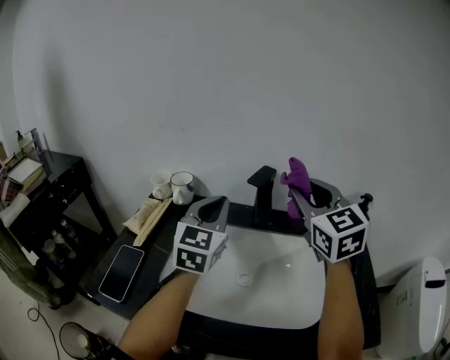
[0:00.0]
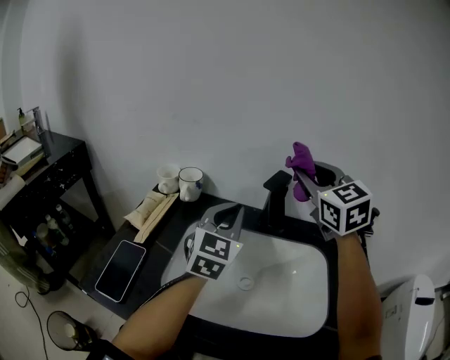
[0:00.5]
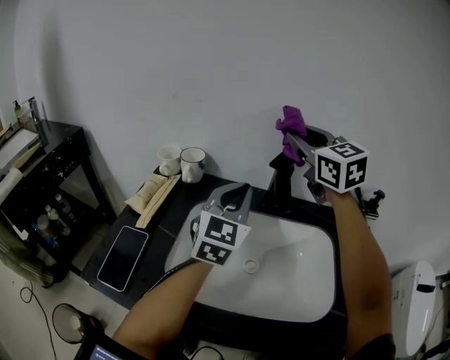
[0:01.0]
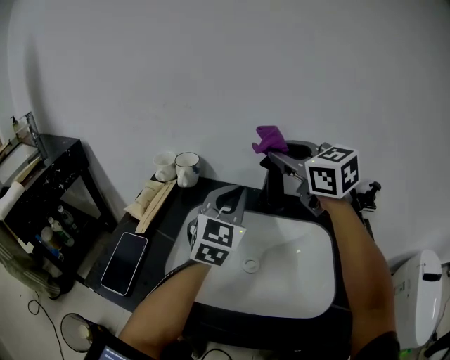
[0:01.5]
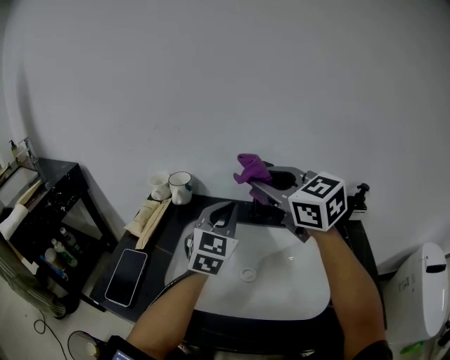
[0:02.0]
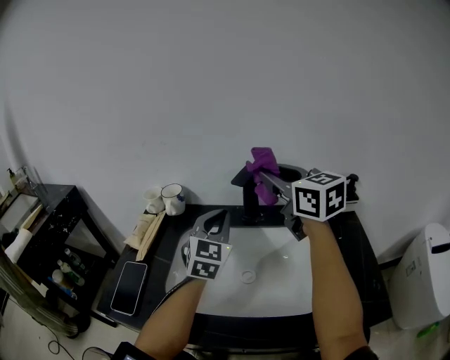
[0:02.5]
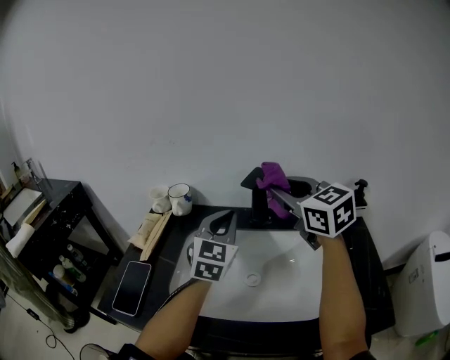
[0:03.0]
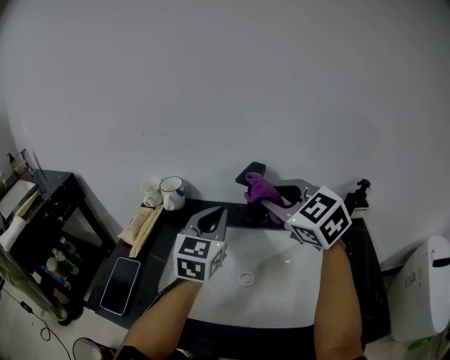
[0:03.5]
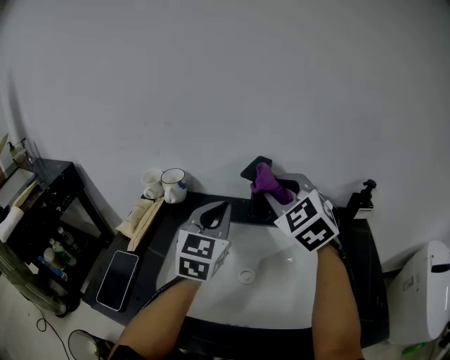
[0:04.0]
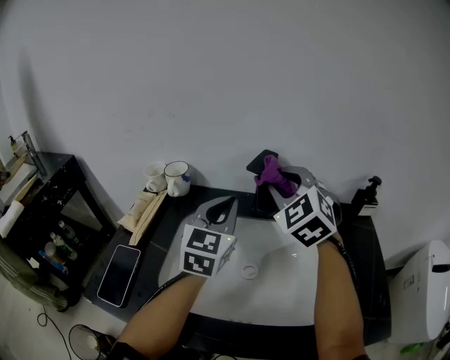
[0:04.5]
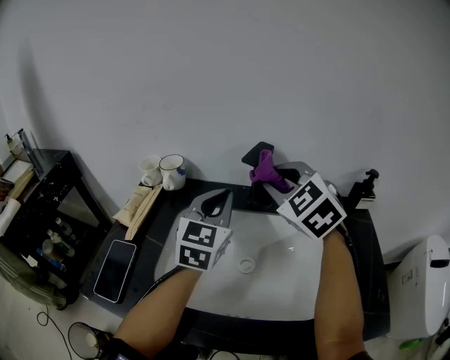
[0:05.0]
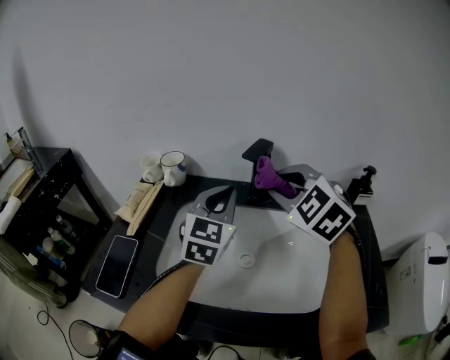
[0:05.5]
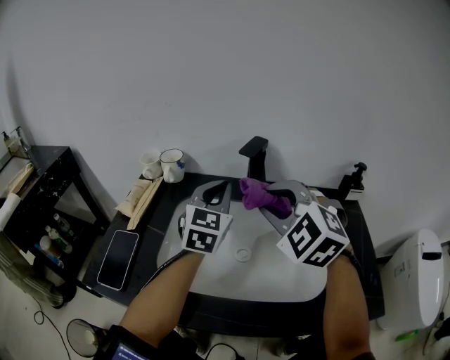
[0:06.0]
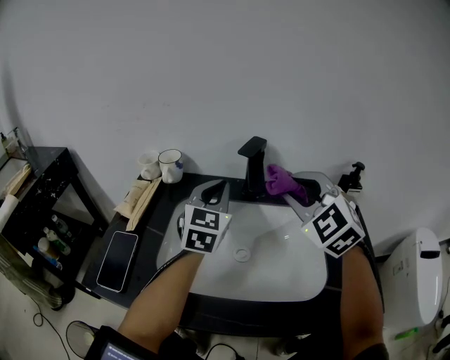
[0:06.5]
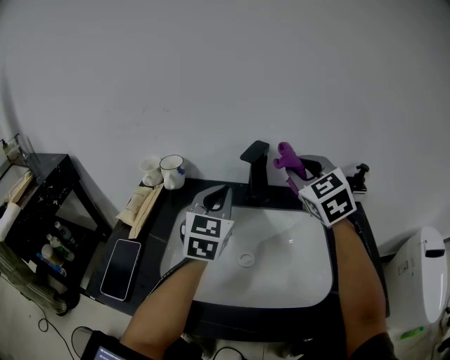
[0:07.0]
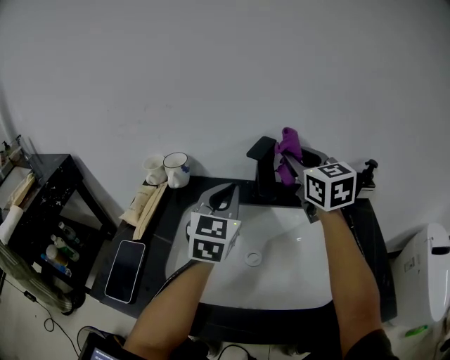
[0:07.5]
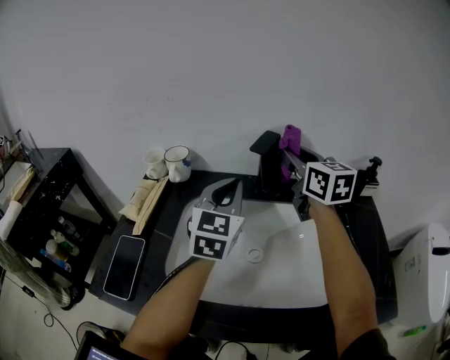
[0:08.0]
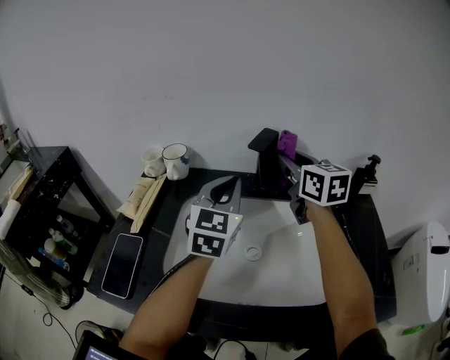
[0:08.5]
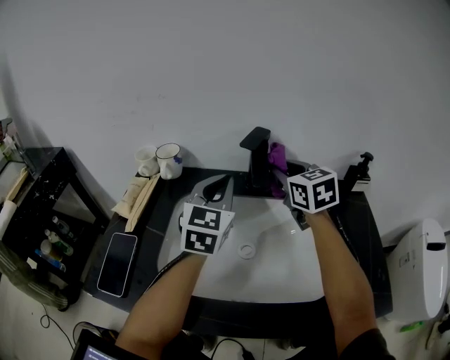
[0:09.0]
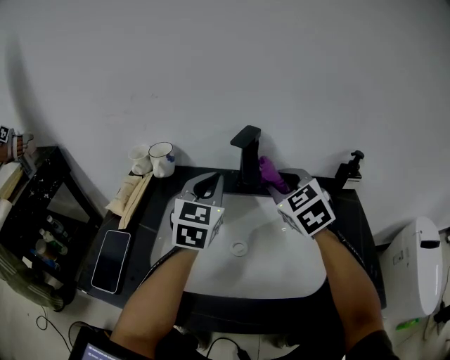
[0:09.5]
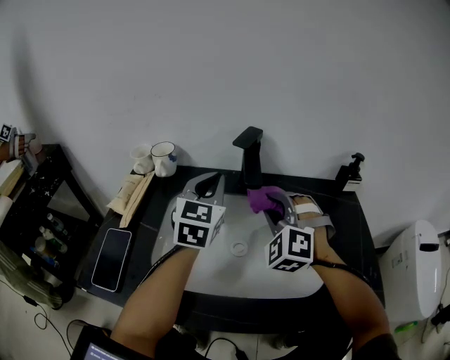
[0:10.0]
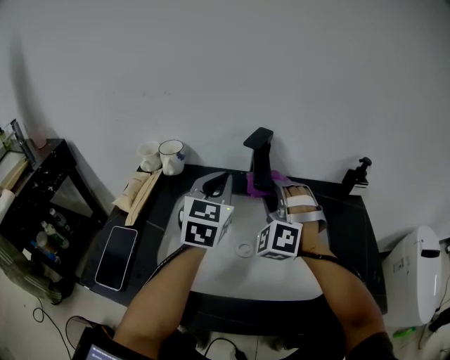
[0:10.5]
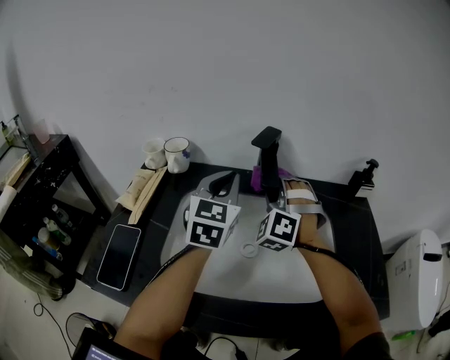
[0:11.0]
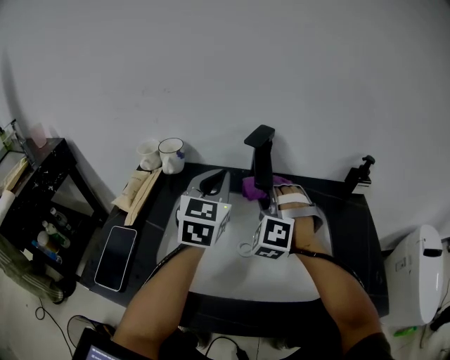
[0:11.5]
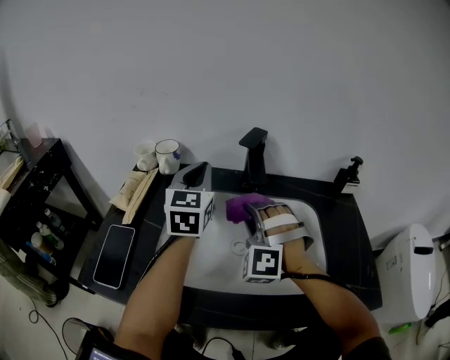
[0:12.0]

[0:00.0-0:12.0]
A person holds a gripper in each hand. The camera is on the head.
0:00.0 to 0:02.0: The right gripper goes some 10 cm to the left, moves about 10 cm forward and comes back, and changes its angle by some 20 degrees.
0:02.0 to 0:04.0: The right gripper is displaced downward by about 5 cm, and rotates about 30 degrees.
0:04.0 to 0:06.0: The right gripper travels backward by some 10 cm.
0:06.0 to 0:08.0: The right gripper is displaced forward and to the right by approximately 15 cm, and rotates around the line of its fingers by roughly 60 degrees, clockwise from behind.
0:08.0 to 0:10.0: The right gripper moves downward and backward, roughly 15 cm, and rotates around the line of its fingers by some 80 degrees, counterclockwise from behind.
0:10.0 to 0:12.0: Both grippers travel together to the left, approximately 5 cm. The right gripper reaches approximately 5 cm forward, then returns.

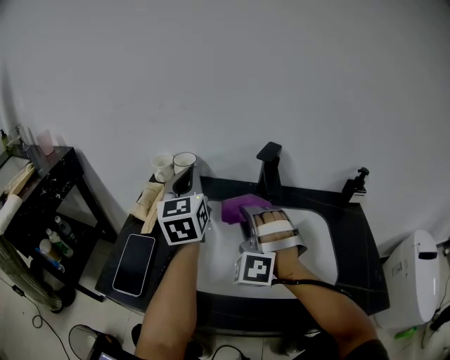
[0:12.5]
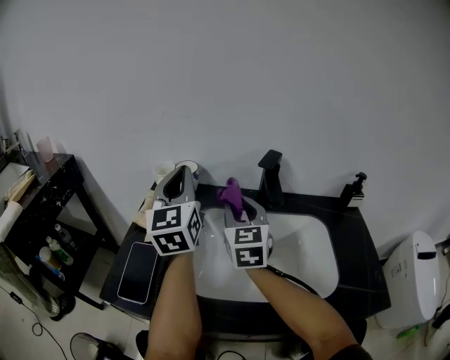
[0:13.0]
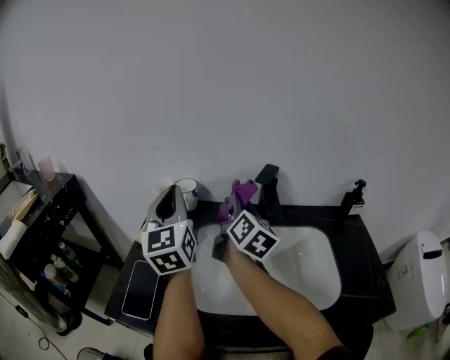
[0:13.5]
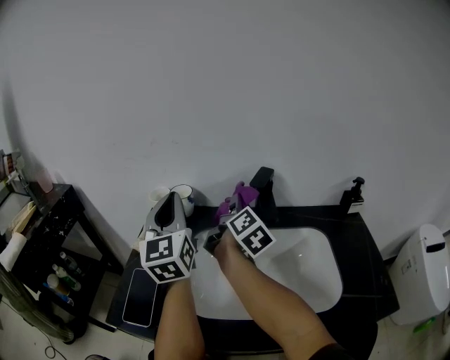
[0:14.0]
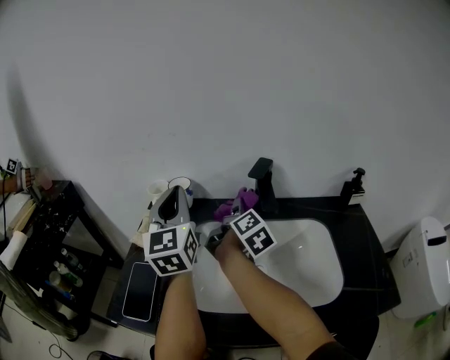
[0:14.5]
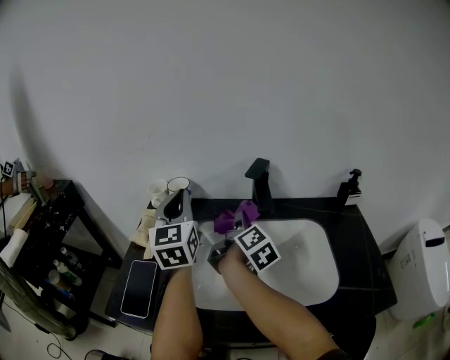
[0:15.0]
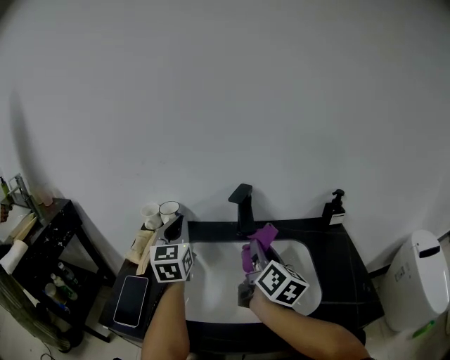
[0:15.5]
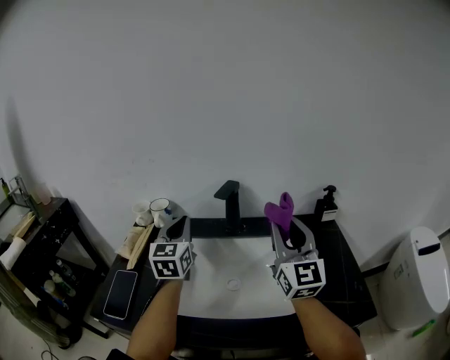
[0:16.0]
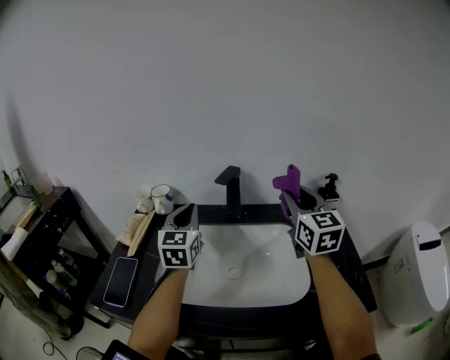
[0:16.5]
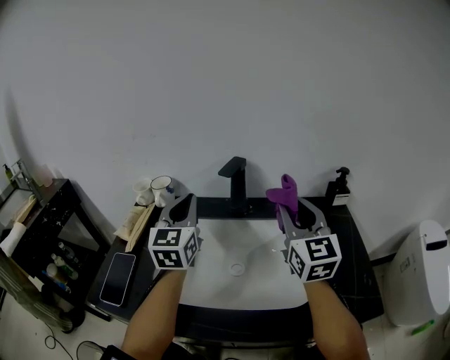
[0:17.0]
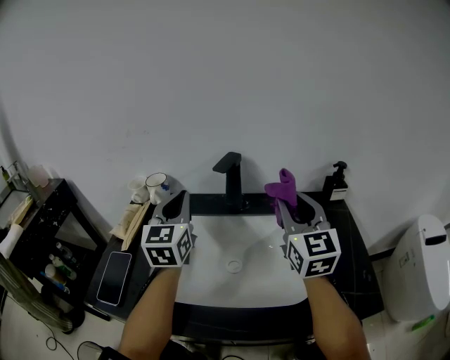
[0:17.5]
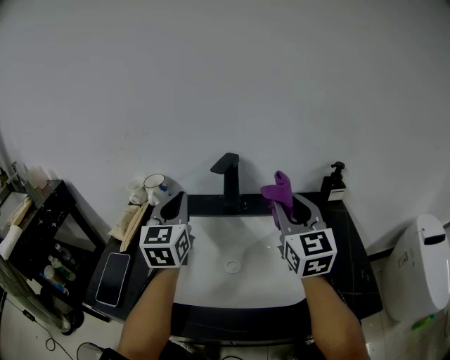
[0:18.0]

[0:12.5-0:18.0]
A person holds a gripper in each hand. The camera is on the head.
0:12.5 to 0:14.5: The right gripper goes roughly 10 cm forward, and twists approximately 150 degrees clockwise, seen from behind.
0:14.5 to 0:16.0: The left gripper shifts some 10 cm to the right and downward. Meanwhile the right gripper heads to the right, backward and upward, covering approximately 25 cm, and twists some 70 degrees counterclockwise, seen from behind.

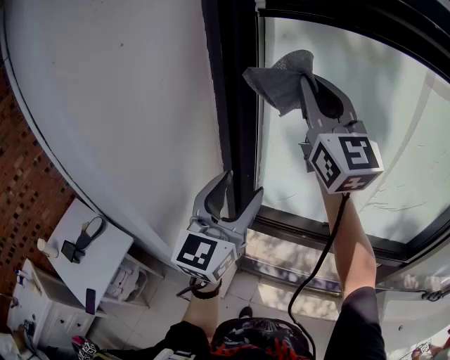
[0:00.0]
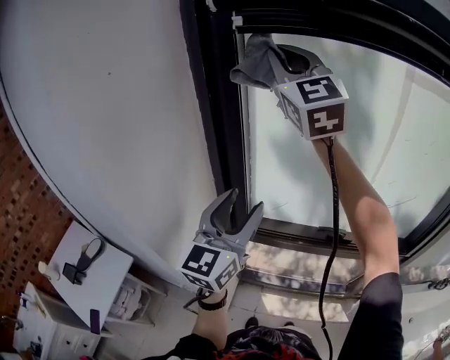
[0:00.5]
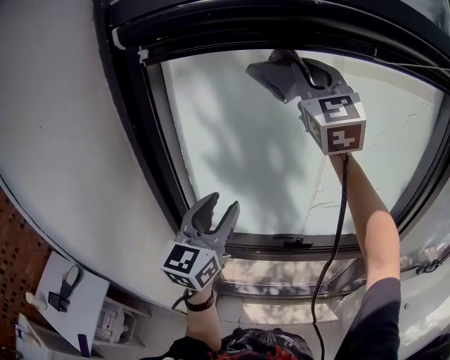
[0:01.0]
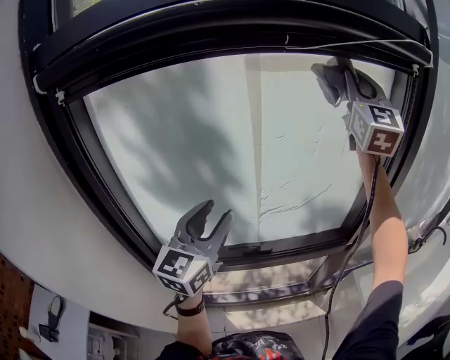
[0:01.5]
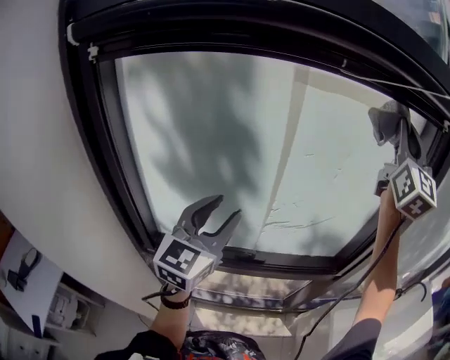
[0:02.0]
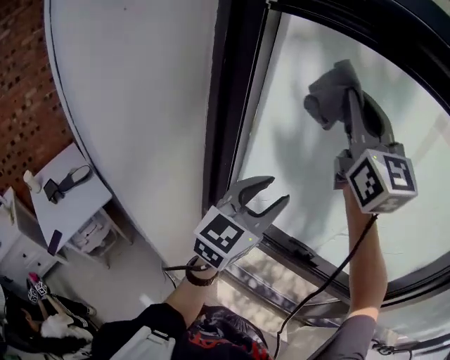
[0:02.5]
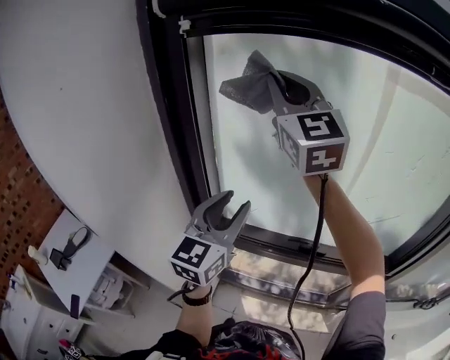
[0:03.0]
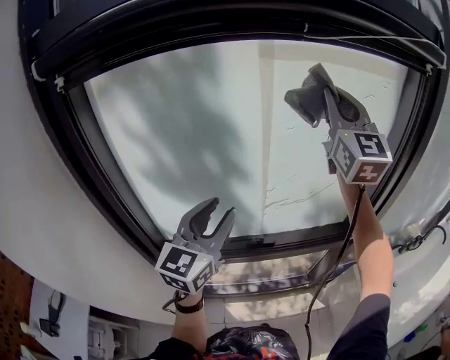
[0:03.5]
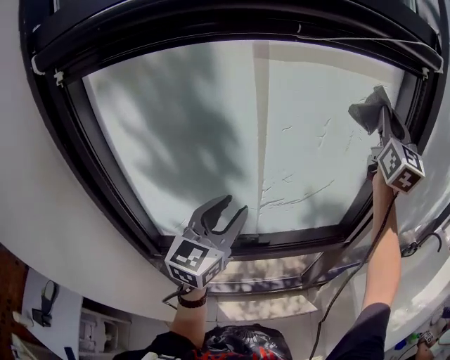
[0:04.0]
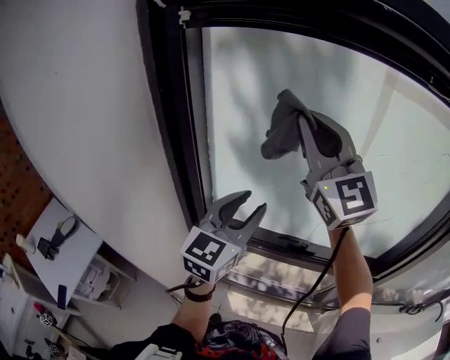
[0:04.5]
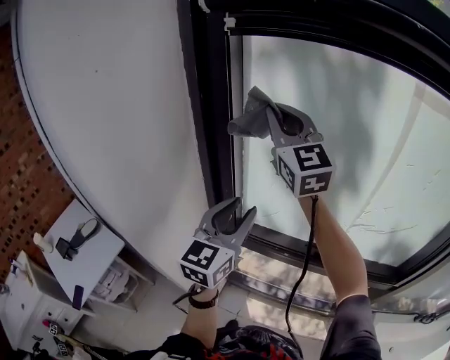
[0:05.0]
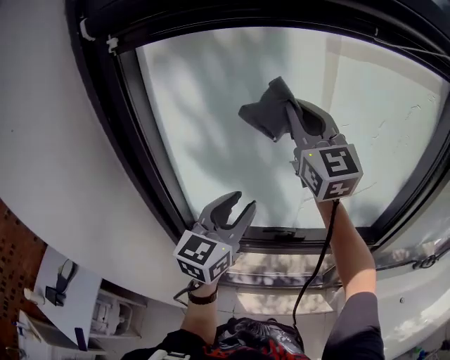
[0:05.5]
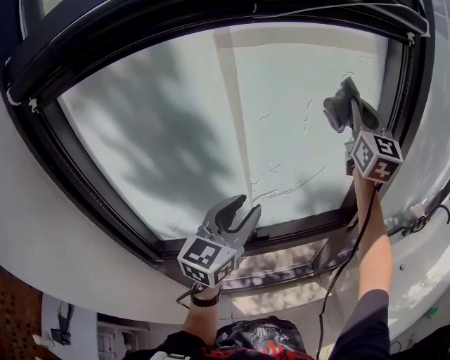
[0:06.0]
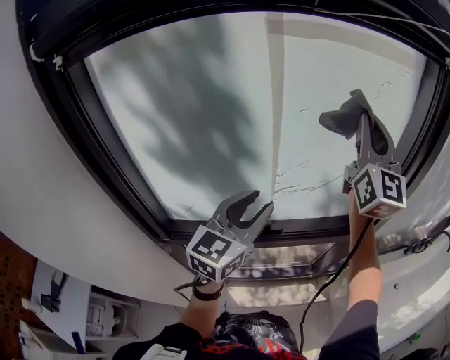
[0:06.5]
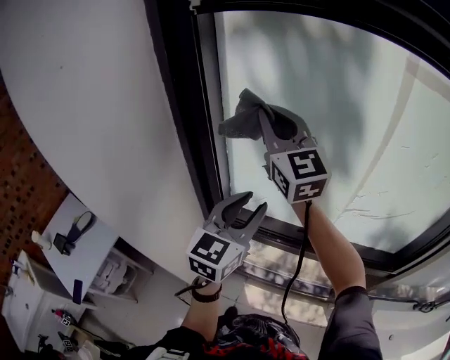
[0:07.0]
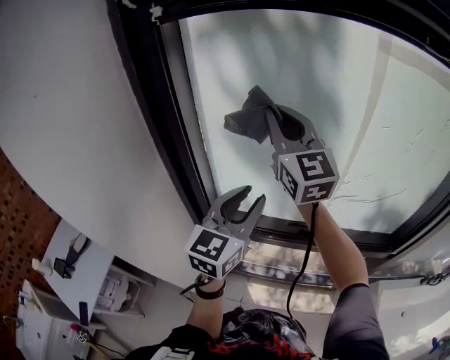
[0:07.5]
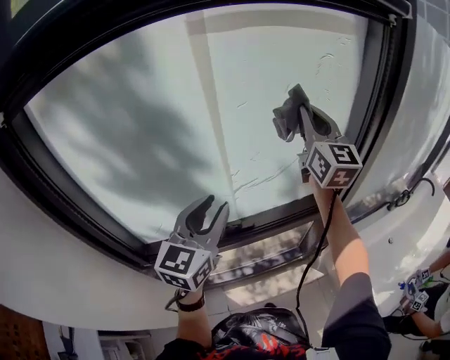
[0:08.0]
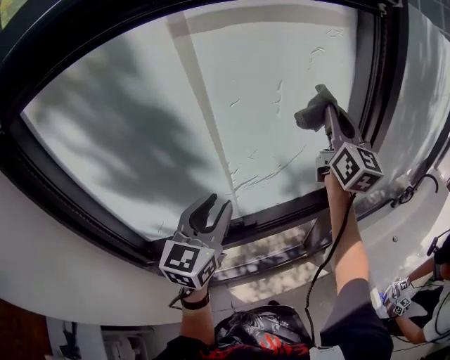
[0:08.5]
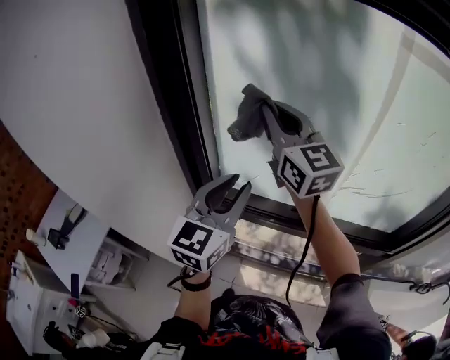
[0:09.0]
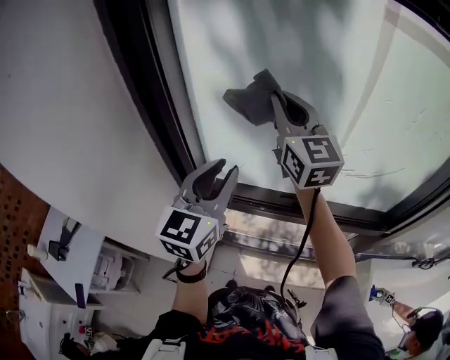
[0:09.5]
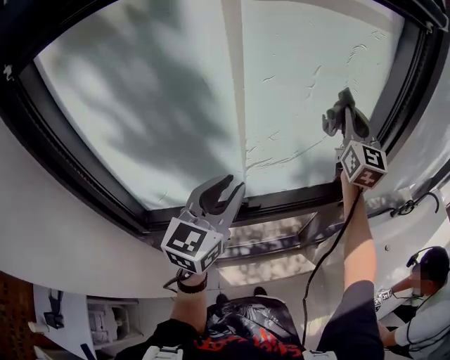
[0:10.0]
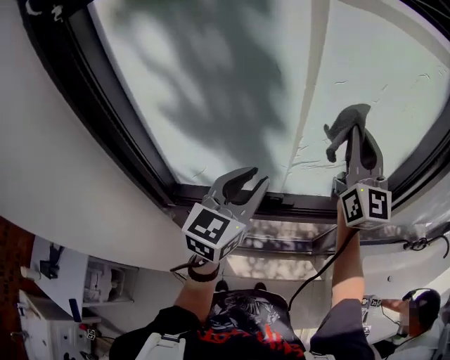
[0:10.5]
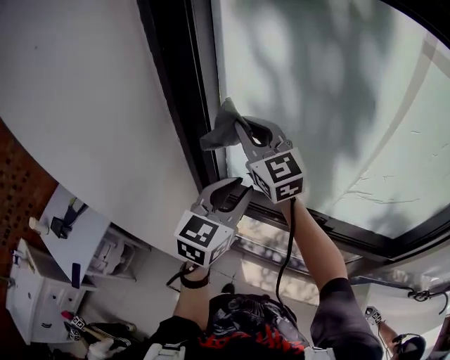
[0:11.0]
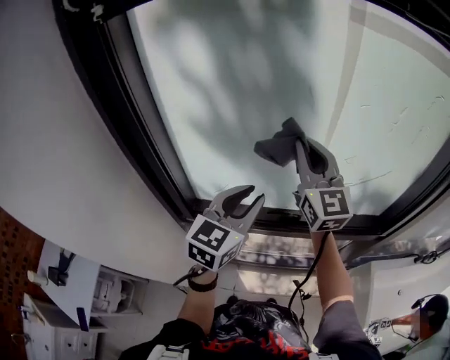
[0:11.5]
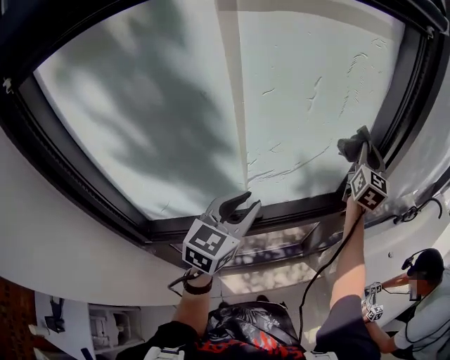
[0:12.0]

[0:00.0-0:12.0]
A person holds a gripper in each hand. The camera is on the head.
0:00.0 to 0:02.0: The left gripper ends up some 30 cm from where it was, while the right gripper changes place by roughly 50 cm, and rotates some 40 degrees.
0:02.0 to 0:04.0: The right gripper shifts approximately 10 cm downward.
0:04.0 to 0:06.0: The right gripper travels downward by about 5 cm.
0:10.0 to 0:12.0: The left gripper moves downward, about 5 cm.
